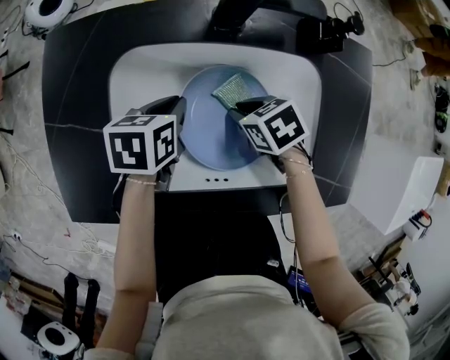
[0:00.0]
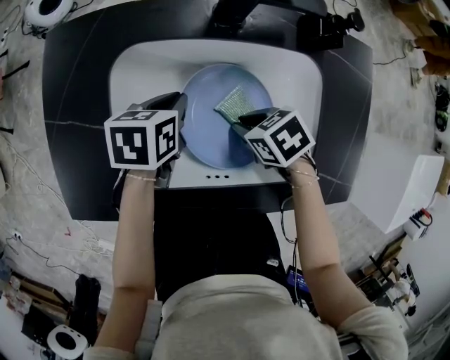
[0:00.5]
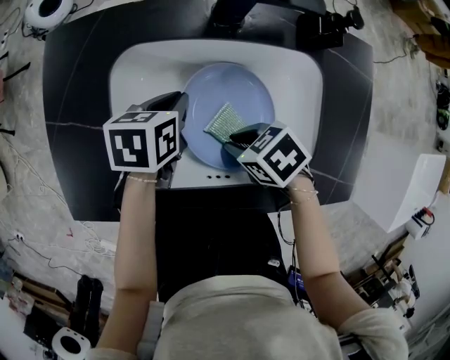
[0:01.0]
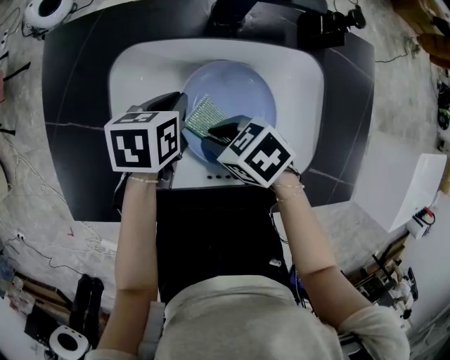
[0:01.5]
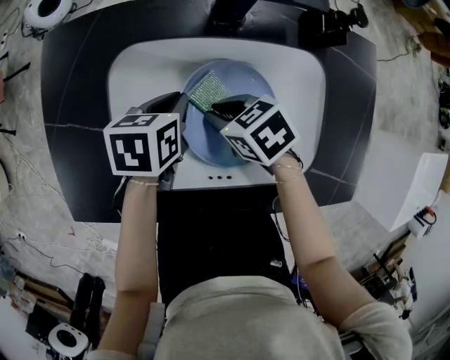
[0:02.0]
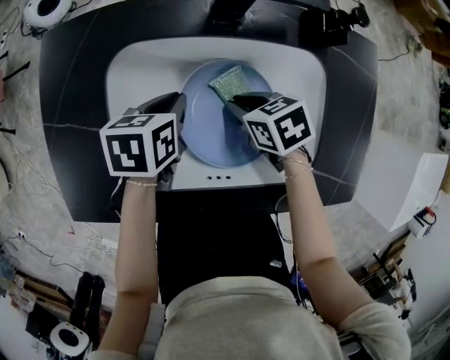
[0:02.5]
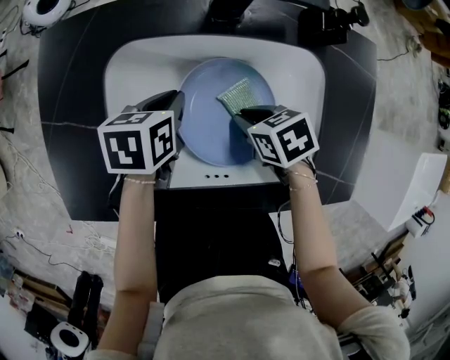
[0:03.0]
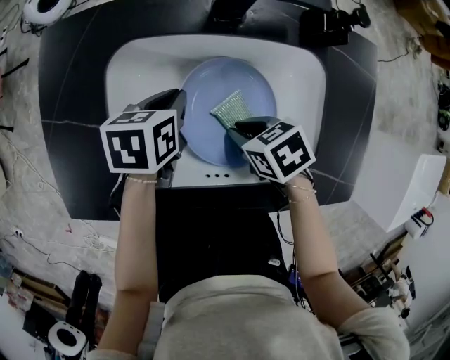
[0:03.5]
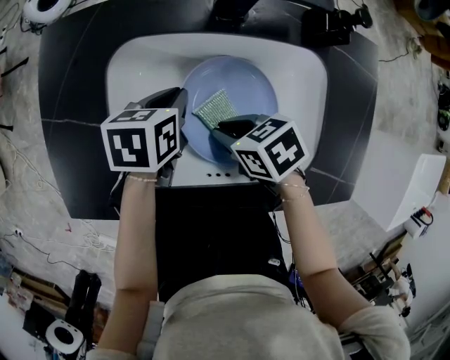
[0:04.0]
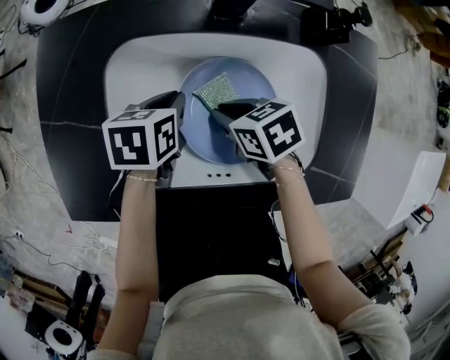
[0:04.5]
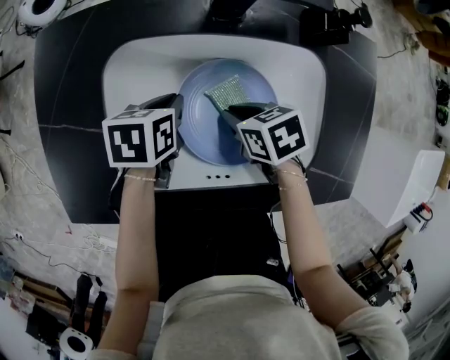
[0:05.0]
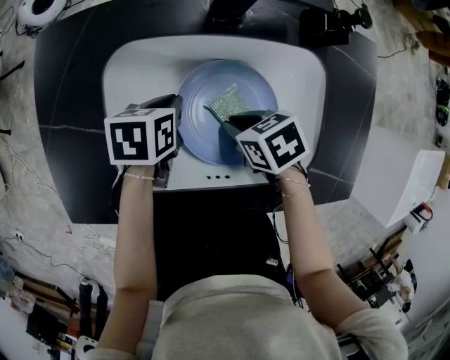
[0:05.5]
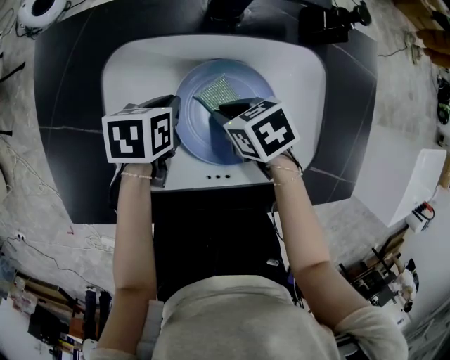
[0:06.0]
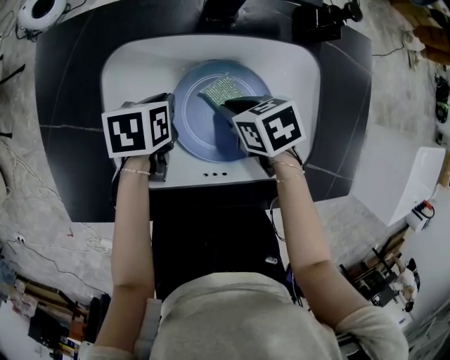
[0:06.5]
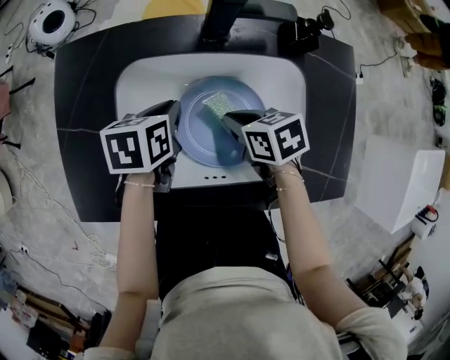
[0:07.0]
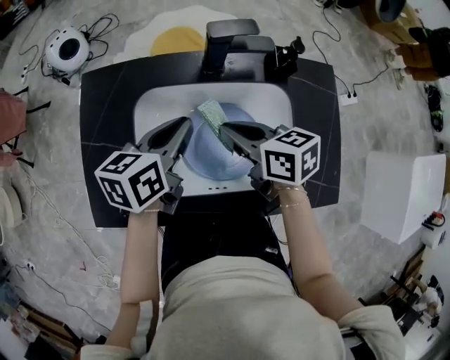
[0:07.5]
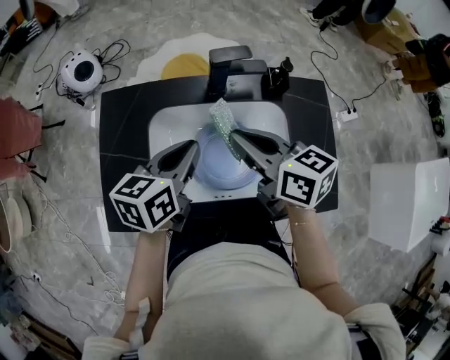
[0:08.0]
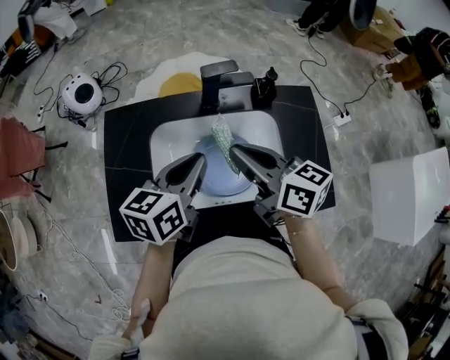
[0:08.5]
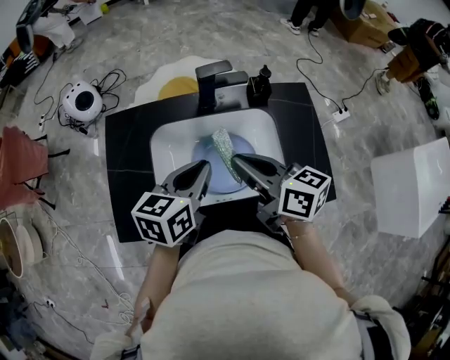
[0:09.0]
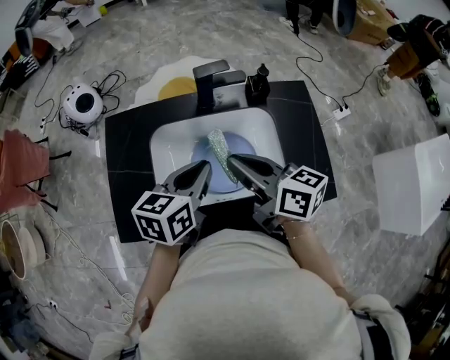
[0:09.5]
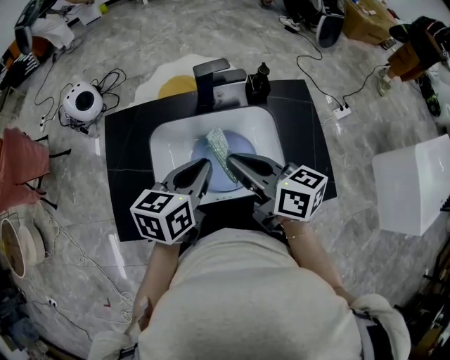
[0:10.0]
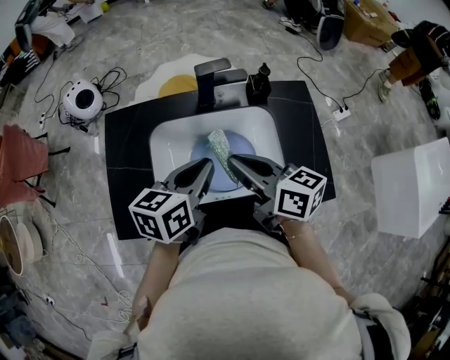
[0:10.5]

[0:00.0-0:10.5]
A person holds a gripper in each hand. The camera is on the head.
0:00.0 to 0:02.0: The right gripper changes place by approximately 5 cm.
0:04.0 to 0:06.5: The right gripper changes place by approximately 5 cm.
0:06.5 to 0:08.5: The grippers both shift upward by approximately 30 cm. The right gripper angles its fingers upward, by approximately 50 degrees. The left gripper points its fingers about 40 degrees further upward.
0:08.5 to 0:10.5: The grippers make only small movements.

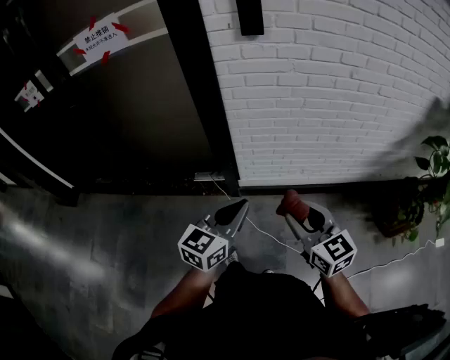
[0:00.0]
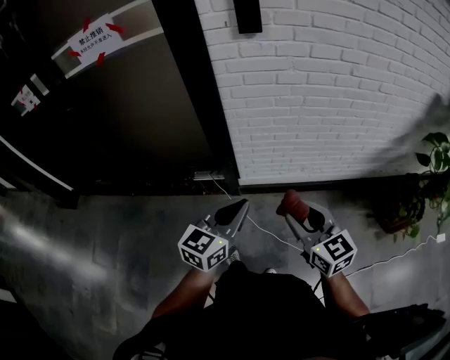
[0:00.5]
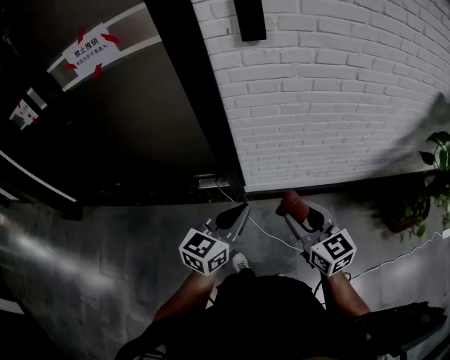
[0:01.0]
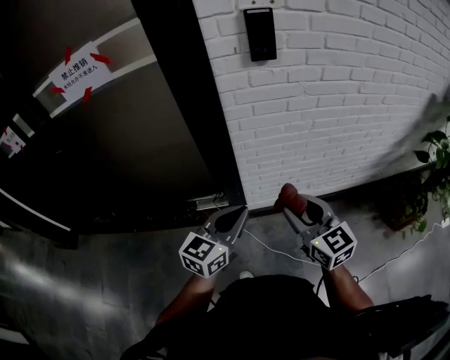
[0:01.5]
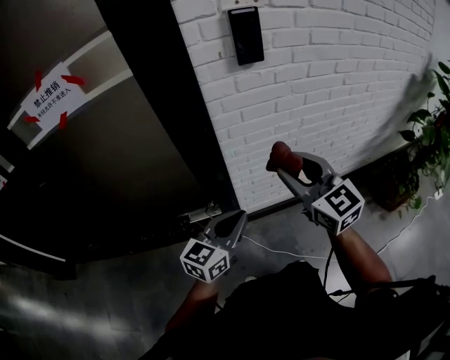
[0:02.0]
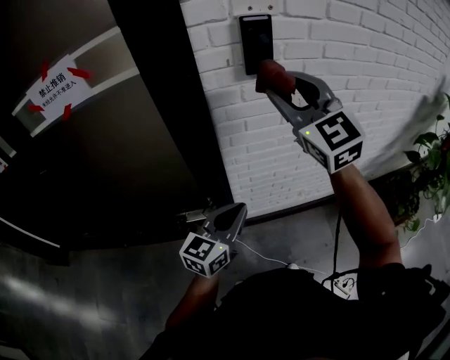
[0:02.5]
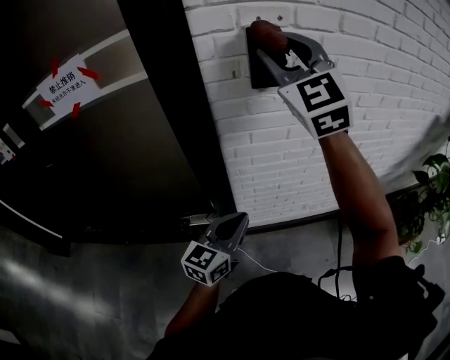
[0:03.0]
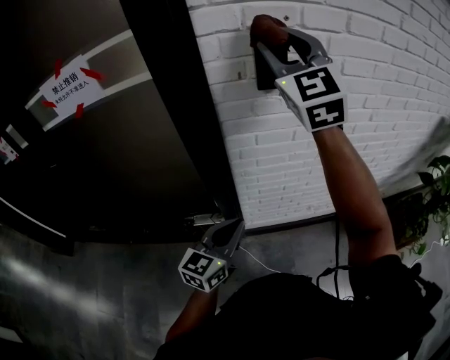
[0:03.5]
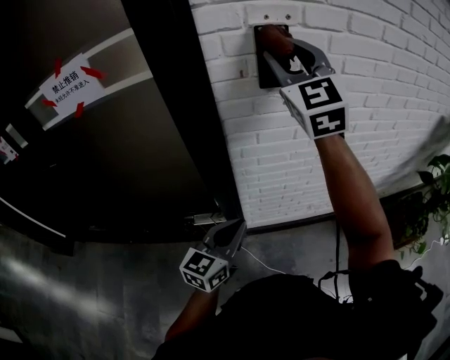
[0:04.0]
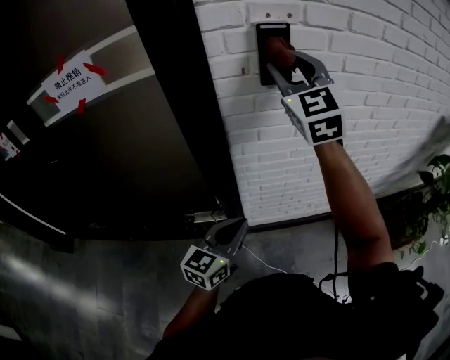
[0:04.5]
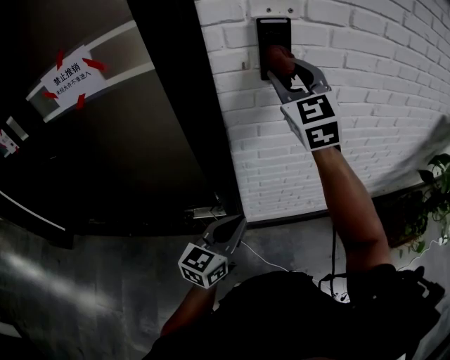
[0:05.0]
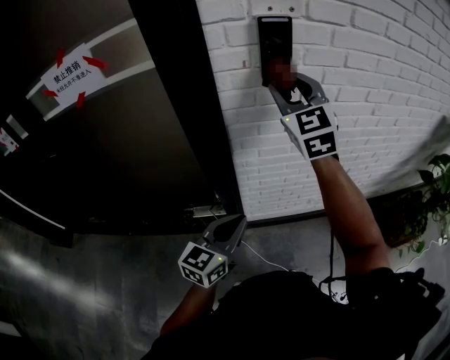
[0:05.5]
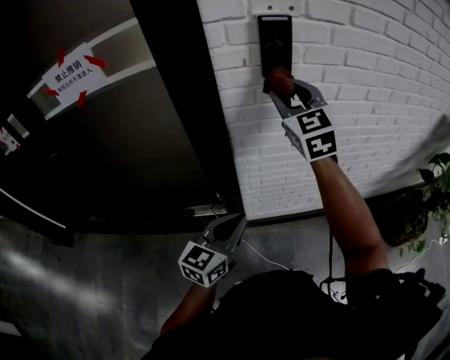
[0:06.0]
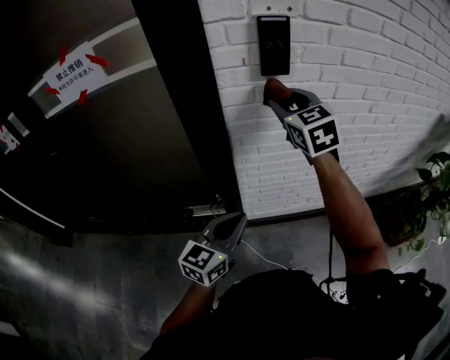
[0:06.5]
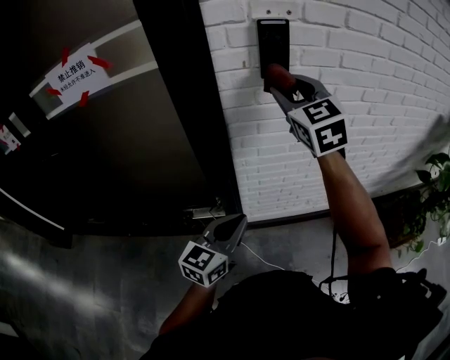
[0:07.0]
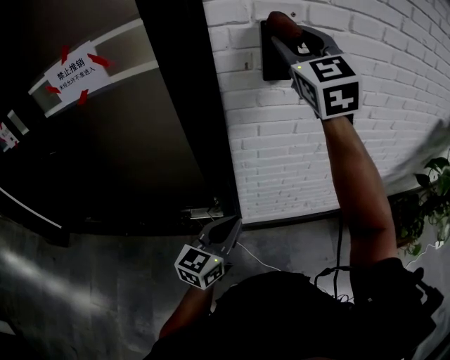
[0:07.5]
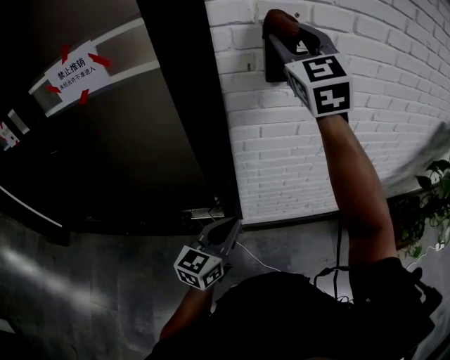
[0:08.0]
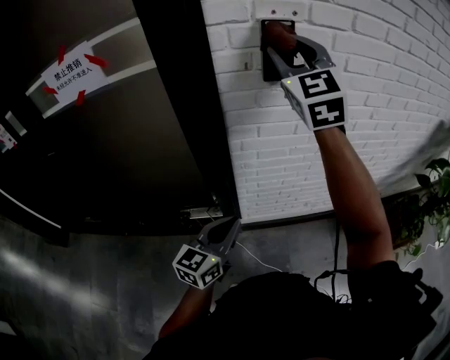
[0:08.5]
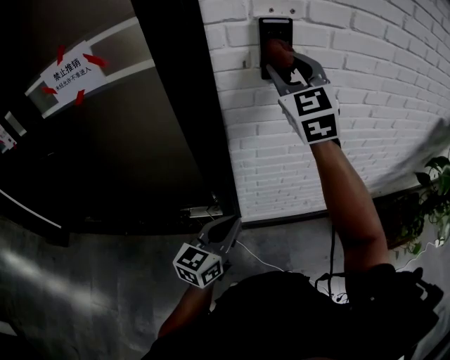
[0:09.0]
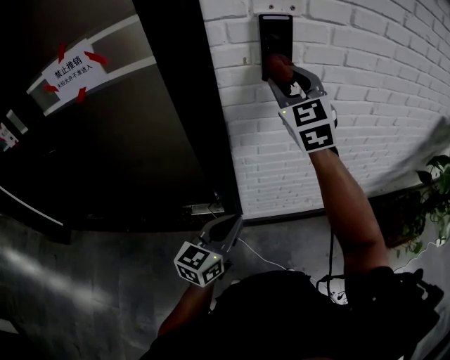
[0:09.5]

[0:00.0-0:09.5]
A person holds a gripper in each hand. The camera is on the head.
0:00.0 to 0:02.0: The right gripper travels forward, to the left and upward by roughly 25 cm, while the left gripper shifts some 20 cm forward and to the left.
0:02.0 to 0:04.0: The left gripper travels forward by roughly 5 cm, while the right gripper moves upward and forward, approximately 30 cm, and turns by approximately 30 degrees.
0:04.0 to 0:05.5: The right gripper heads downward, covering approximately 10 cm.
0:05.5 to 0:07.5: The right gripper shifts roughly 15 cm upward.
0:07.5 to 0:09.5: The right gripper goes about 10 cm downward.

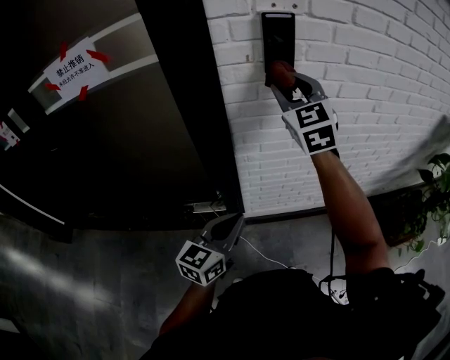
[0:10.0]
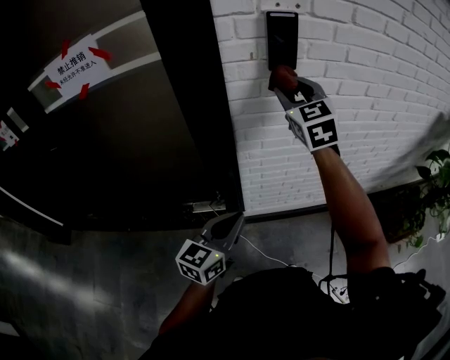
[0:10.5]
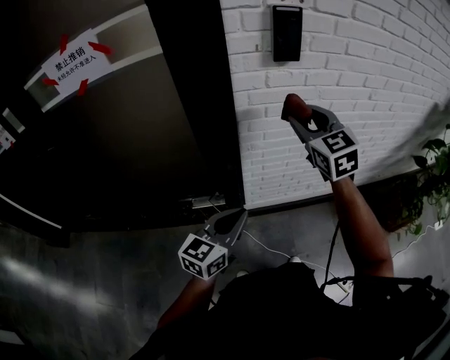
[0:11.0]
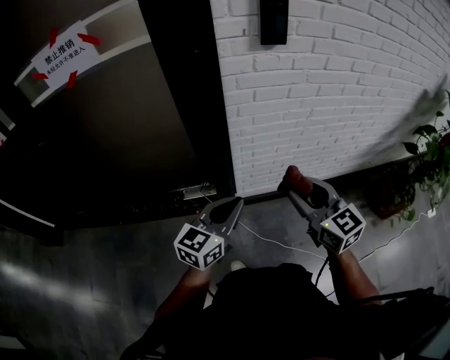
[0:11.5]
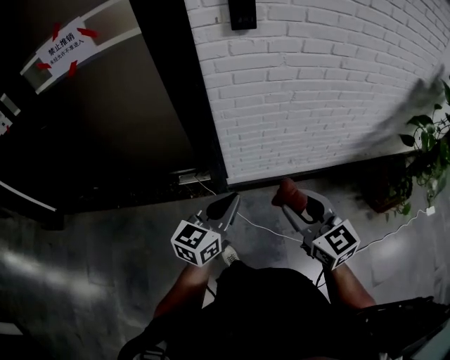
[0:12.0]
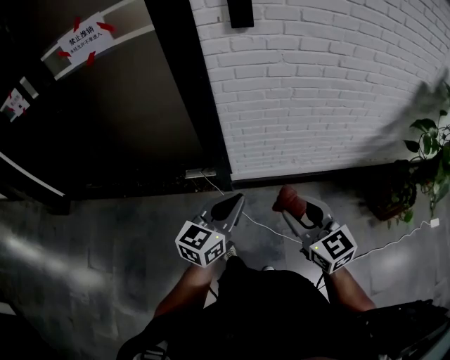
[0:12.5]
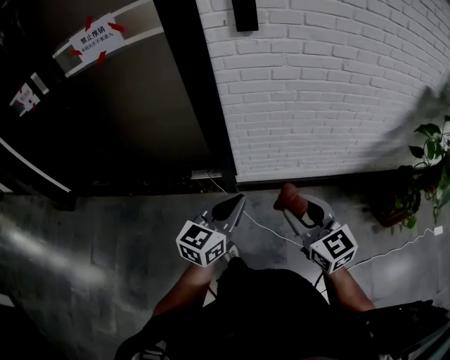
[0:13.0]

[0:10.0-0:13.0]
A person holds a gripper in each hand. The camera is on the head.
0:10.0 to 0:11.5: The right gripper goes roughly 35 cm backward and downward, and rotates about 30 degrees. Meanwhile the left gripper moves backward, roughly 5 cm.
0:11.5 to 0:13.0: Both grippers move backward and to the right, approximately 20 cm.

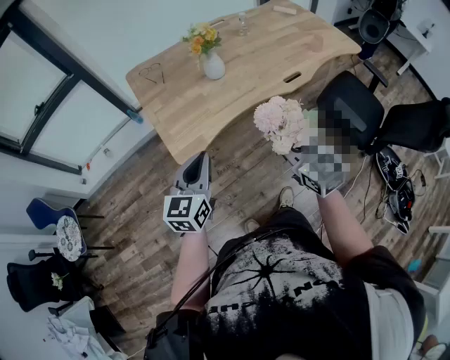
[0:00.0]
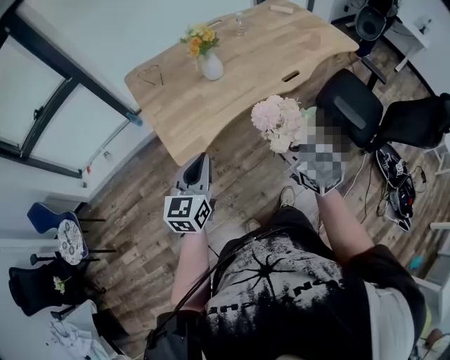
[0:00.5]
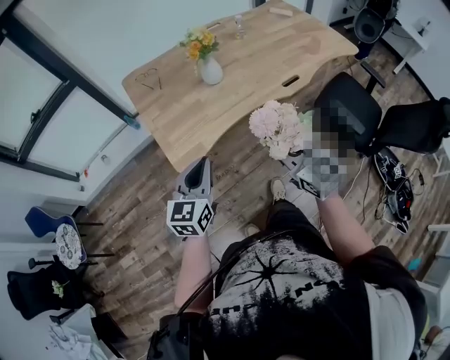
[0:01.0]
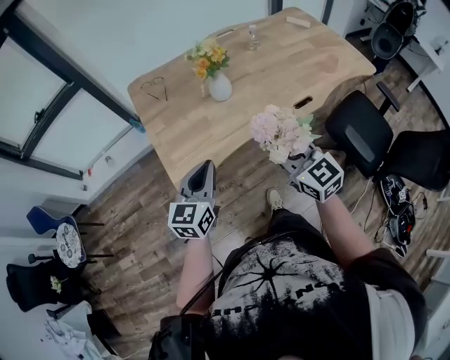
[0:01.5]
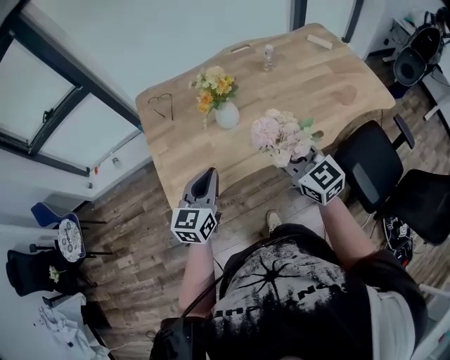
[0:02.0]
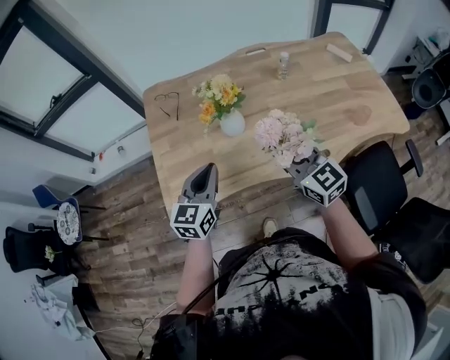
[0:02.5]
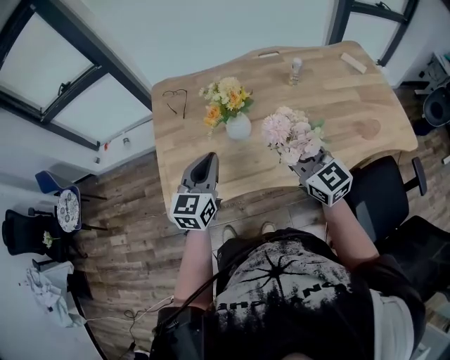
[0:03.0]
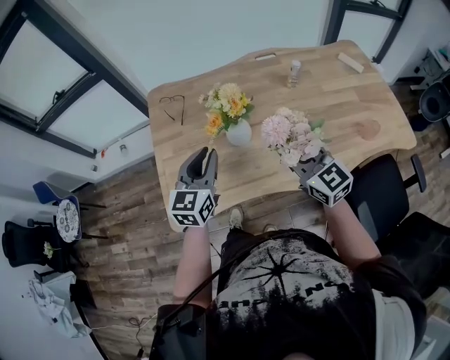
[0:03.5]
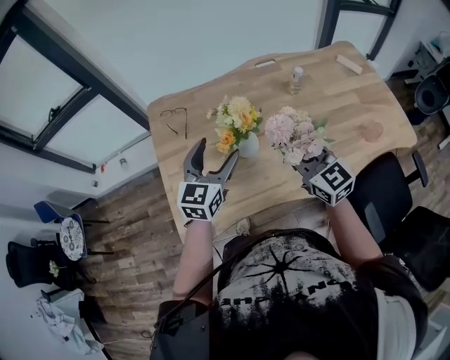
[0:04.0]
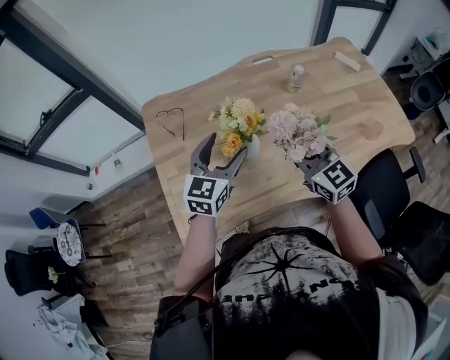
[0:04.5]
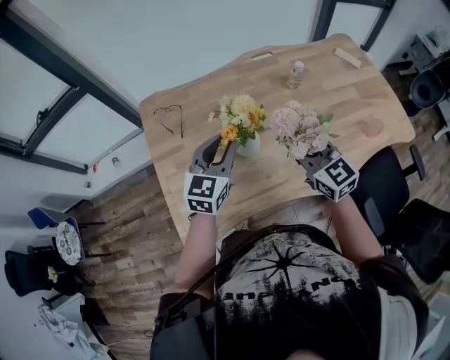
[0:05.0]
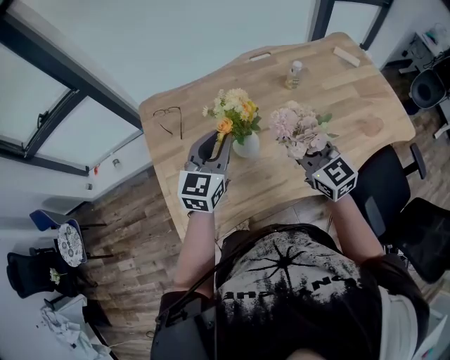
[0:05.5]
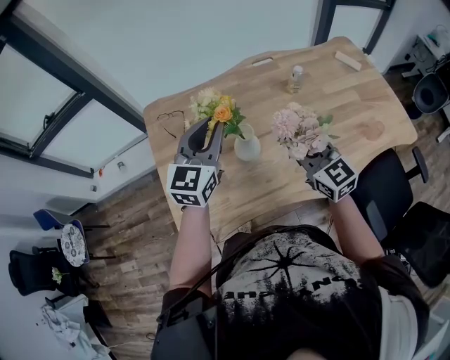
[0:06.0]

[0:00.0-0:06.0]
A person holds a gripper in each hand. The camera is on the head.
0:00.0 to 0:02.0: The two grippers go approximately 20 cm forward.
0:02.0 to 0:04.0: Both grippers move forward, some 15 cm. The left gripper opens.
0:04.0 to 0:06.0: The left gripper travels upward and forward by approximately 10 cm, and closes up.
